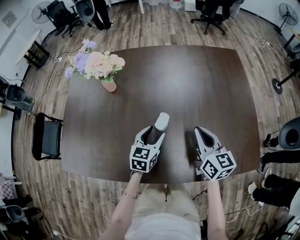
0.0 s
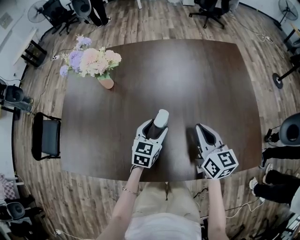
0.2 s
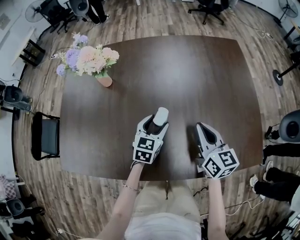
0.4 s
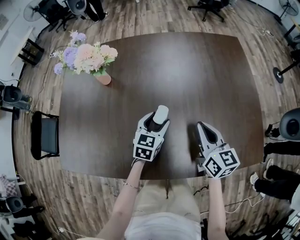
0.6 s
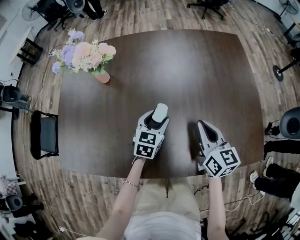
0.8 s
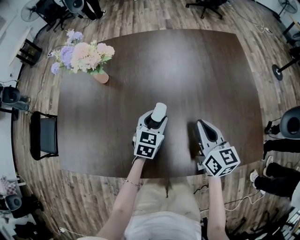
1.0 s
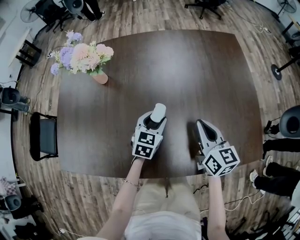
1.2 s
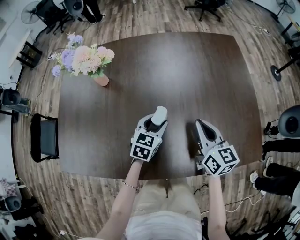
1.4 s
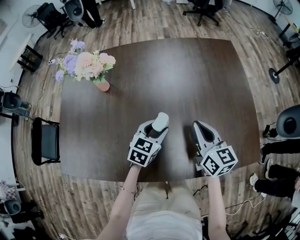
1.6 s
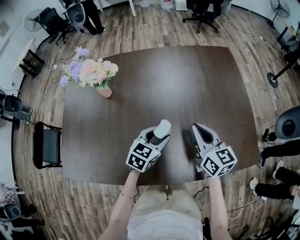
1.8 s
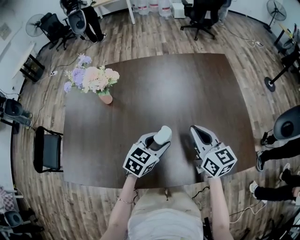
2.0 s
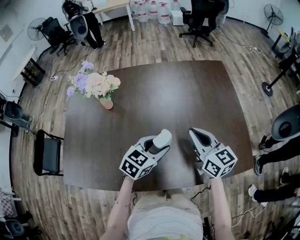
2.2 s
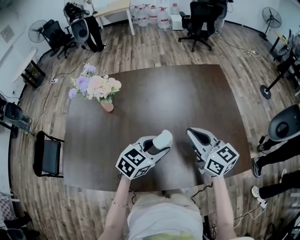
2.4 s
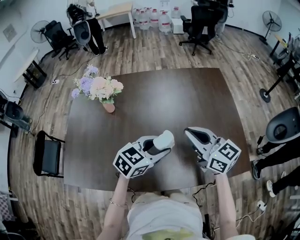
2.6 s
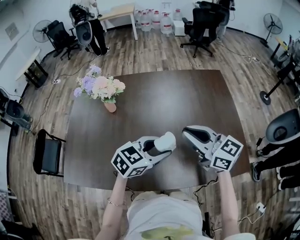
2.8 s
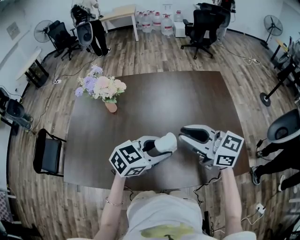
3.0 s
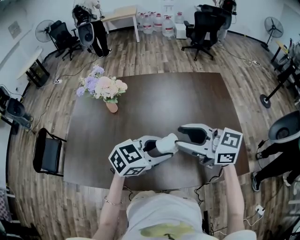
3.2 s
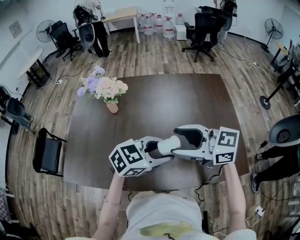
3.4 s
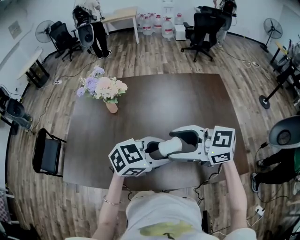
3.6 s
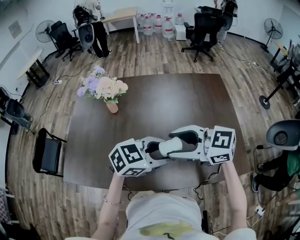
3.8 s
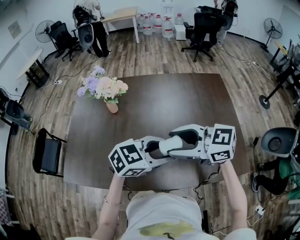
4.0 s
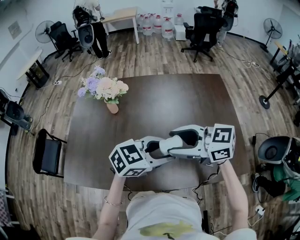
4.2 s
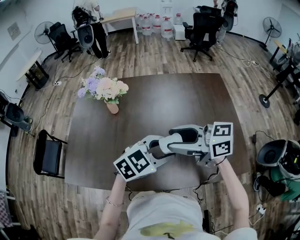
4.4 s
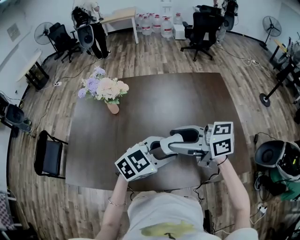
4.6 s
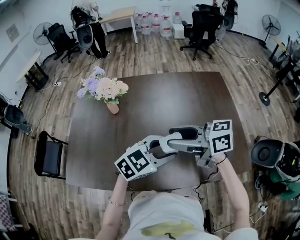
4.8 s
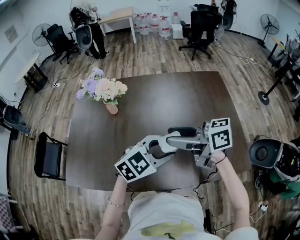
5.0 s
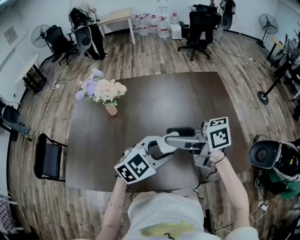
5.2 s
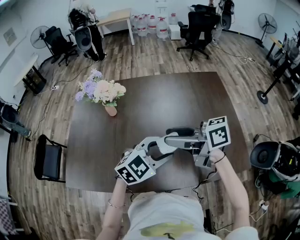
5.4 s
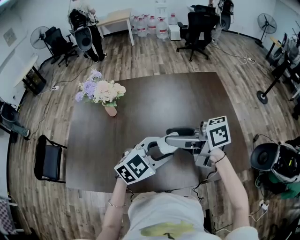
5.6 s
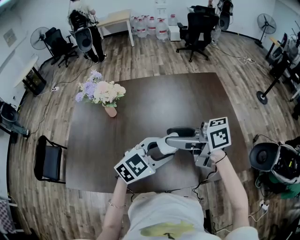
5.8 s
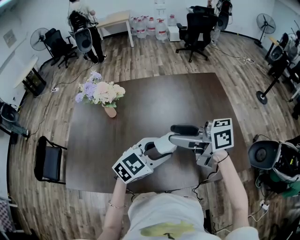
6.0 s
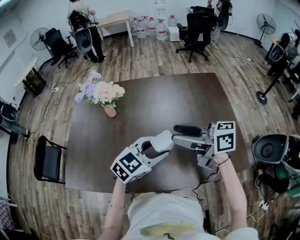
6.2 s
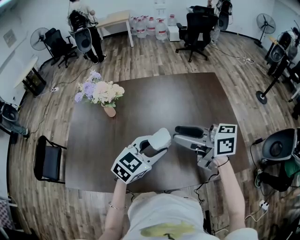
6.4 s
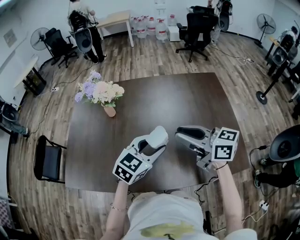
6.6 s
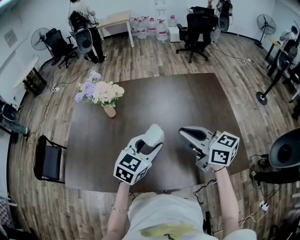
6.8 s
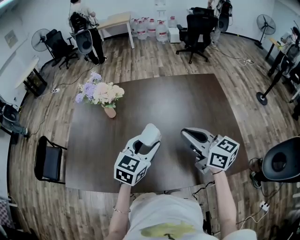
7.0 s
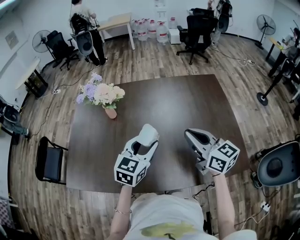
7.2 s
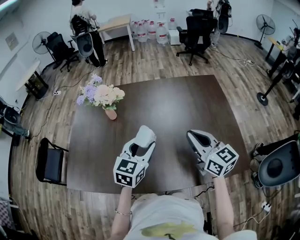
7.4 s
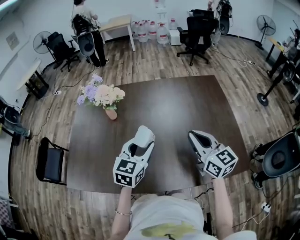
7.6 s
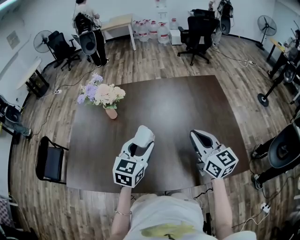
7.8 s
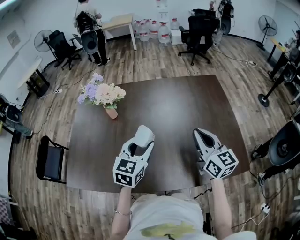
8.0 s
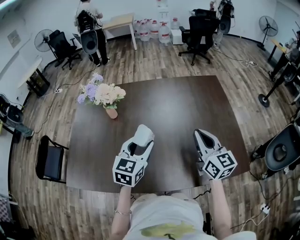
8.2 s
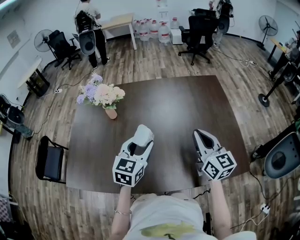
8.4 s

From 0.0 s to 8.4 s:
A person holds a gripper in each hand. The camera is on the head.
From 0.0 s to 1.4 s: There are only small adjustments of the grippers.
From 1.4 s to 2.8 s: The right gripper moves upward, some 15 cm, and rotates about 30 degrees, while the left gripper is displaced upward and backward by approximately 20 cm, and turns by some 30 degrees.
From 2.8 s to 4.2 s: The right gripper ends up about 10 cm from where it was, changes its angle by approximately 30 degrees, and opens its fingers.
From 4.2 s to 5.6 s: The right gripper rotates approximately 30 degrees.
From 5.6 s to 7.0 s: The right gripper moves some 10 cm, changes its angle by roughly 40 degrees, and closes its fingers. The left gripper moves some 5 cm, and changes its angle by some 30 degrees.
From 7.0 s to 8.4 s: The right gripper travels to the right by roughly 5 cm, and swivels about 20 degrees.

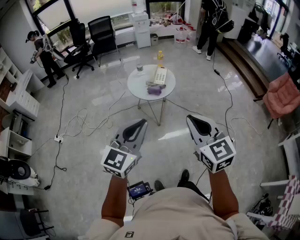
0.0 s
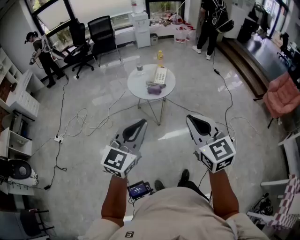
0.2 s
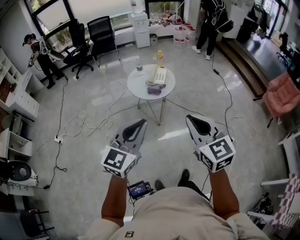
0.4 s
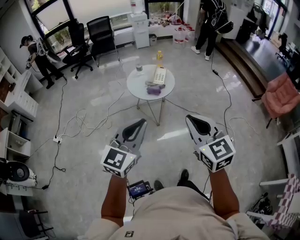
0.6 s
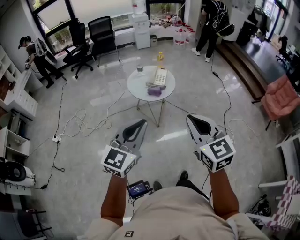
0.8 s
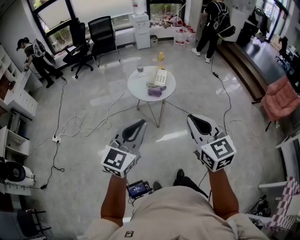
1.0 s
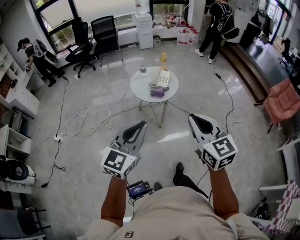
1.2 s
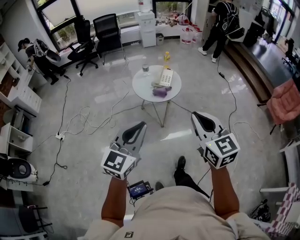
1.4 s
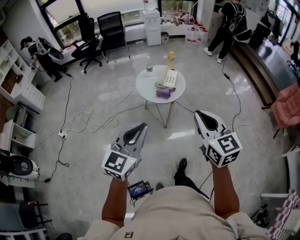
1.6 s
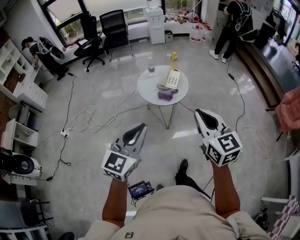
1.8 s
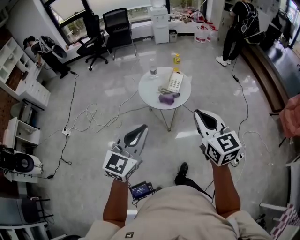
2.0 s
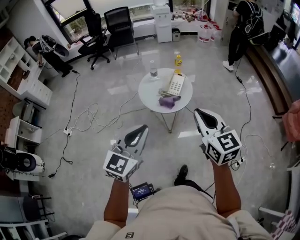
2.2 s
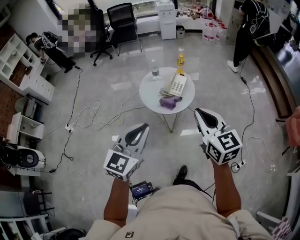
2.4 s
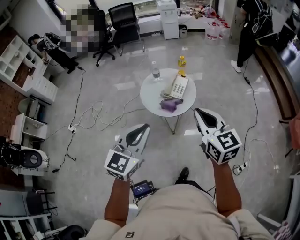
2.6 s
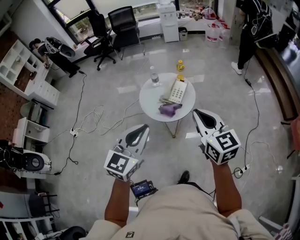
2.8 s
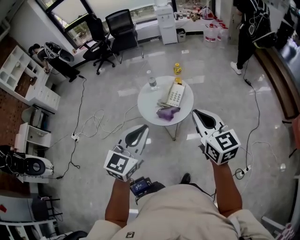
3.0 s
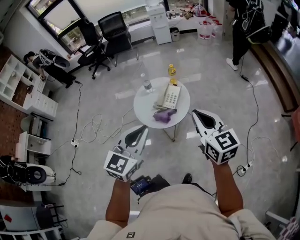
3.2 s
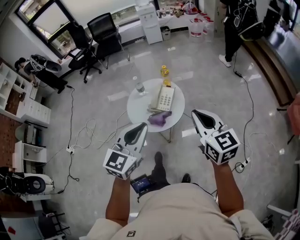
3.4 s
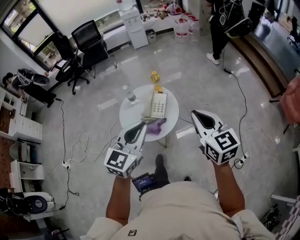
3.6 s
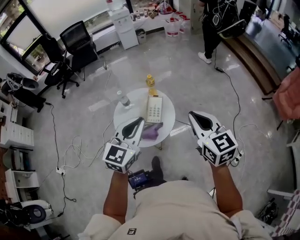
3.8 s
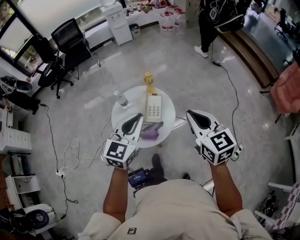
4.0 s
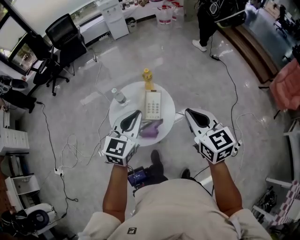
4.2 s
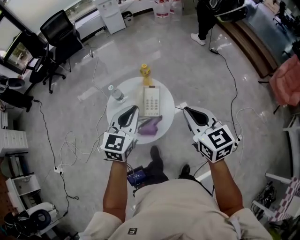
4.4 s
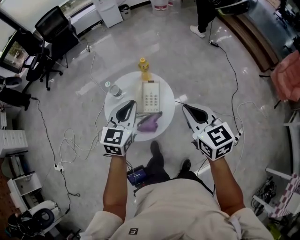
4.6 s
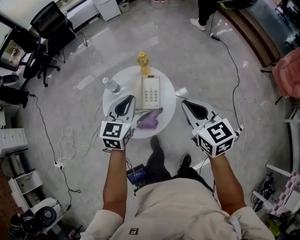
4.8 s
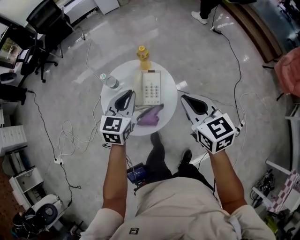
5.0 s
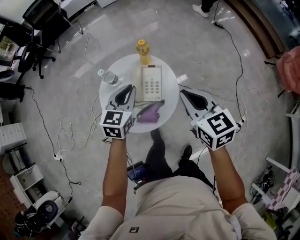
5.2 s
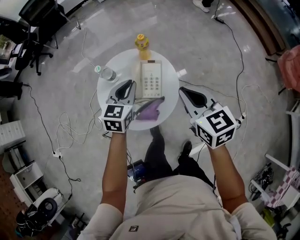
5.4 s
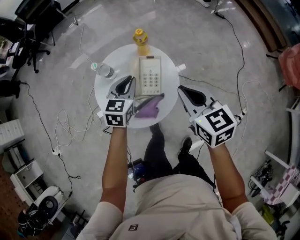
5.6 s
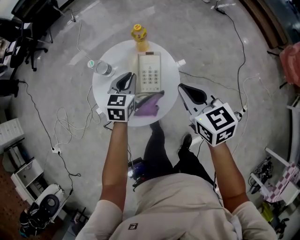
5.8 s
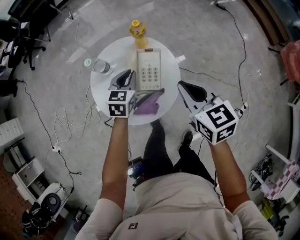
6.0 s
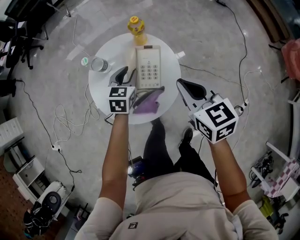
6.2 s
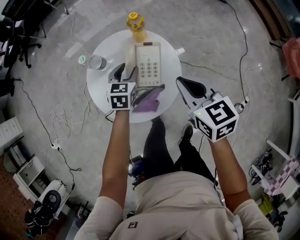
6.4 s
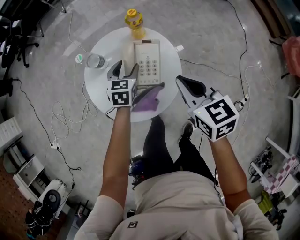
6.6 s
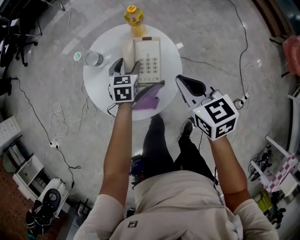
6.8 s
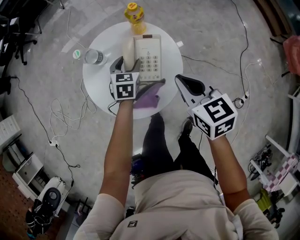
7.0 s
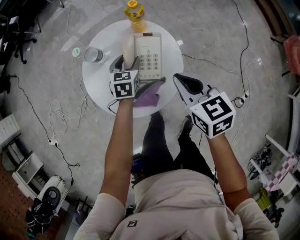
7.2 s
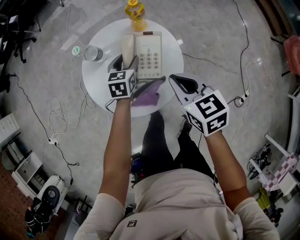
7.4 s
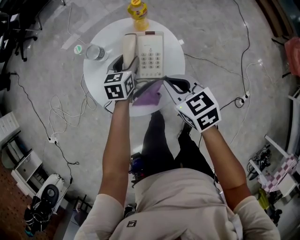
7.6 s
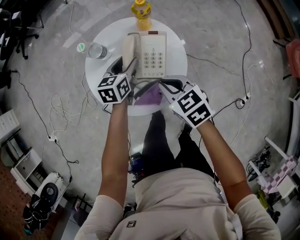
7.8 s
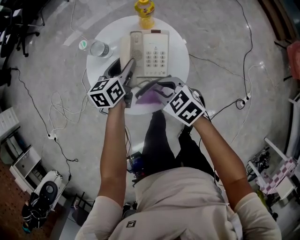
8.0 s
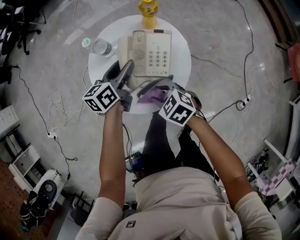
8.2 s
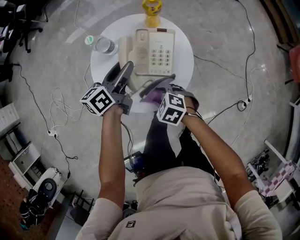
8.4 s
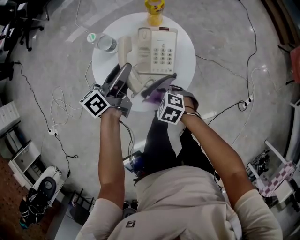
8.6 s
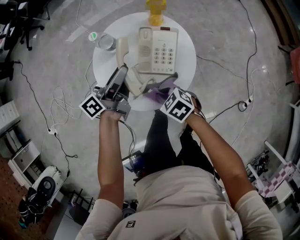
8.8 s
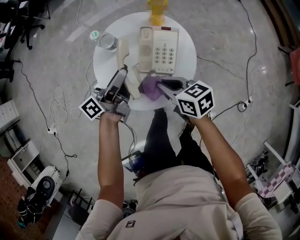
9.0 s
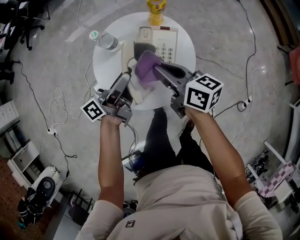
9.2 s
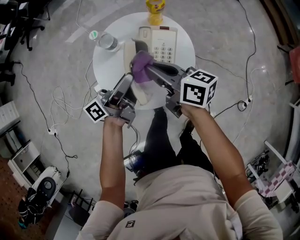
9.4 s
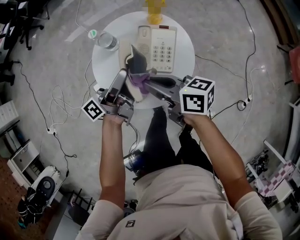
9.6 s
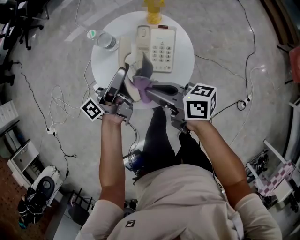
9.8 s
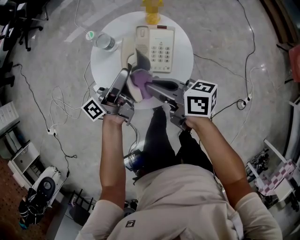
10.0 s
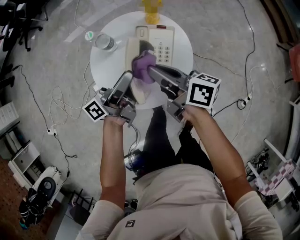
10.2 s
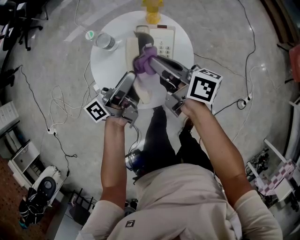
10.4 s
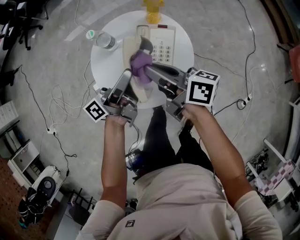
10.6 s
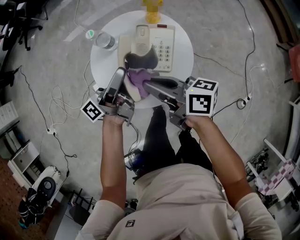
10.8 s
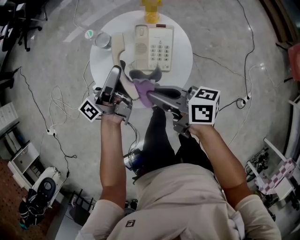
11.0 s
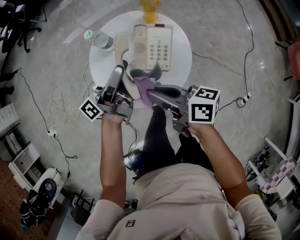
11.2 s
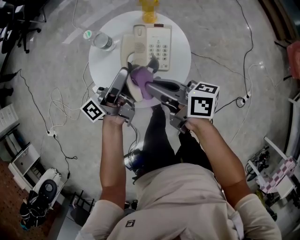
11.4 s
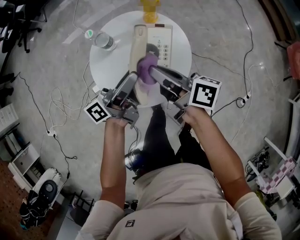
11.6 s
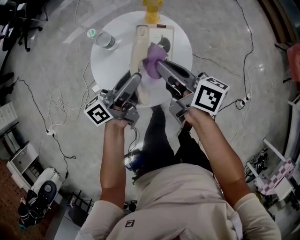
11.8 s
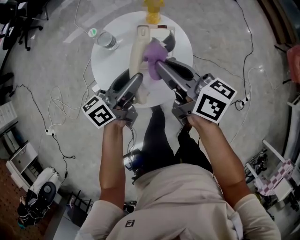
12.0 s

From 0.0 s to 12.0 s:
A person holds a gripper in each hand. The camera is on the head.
From 0.0 s to 1.6 s: The right gripper travels forward by some 10 cm. The left gripper shifts some 5 cm forward.
From 1.6 s to 3.0 s: The left gripper heads forward and to the right, covering about 30 cm, while the right gripper goes some 30 cm forward.
From 3.0 s to 4.4 s: The left gripper moves forward and downward, roughly 35 cm; the right gripper is displaced forward and downward by roughly 20 cm, and swivels approximately 20 degrees.
From 4.4 s to 6.0 s: The right gripper heads downward and forward, covering approximately 20 cm; the left gripper is displaced downward and forward by roughly 30 cm, and swivels approximately 20 degrees.
From 6.0 s to 7.6 s: The right gripper goes roughly 10 cm downward and to the left. The left gripper travels downward by approximately 10 cm, and opens.
From 7.6 s to 9.0 s: The left gripper moves upward and to the left, approximately 15 cm, and angles its fingers upward, by about 50 degrees; the right gripper is displaced to the left by about 5 cm, travels downward and back again, some 15 cm each way, rotates about 20 degrees, and opens, then closes again.
From 9.0 s to 10.4 s: The right gripper is displaced upward and forward by approximately 15 cm, and turns by approximately 40 degrees, while the left gripper changes place by about 5 cm.
From 10.4 s to 12.0 s: The left gripper turns by roughly 30 degrees. The right gripper reaches approximately 10 cm backward, then returns.

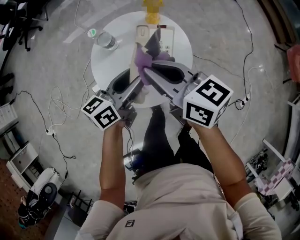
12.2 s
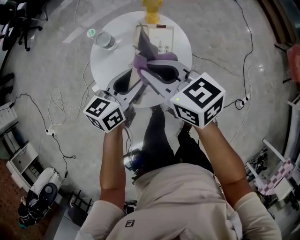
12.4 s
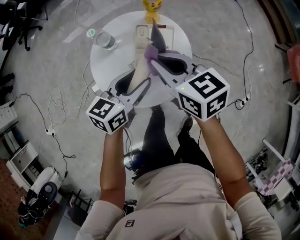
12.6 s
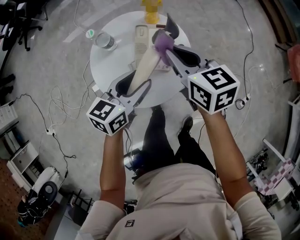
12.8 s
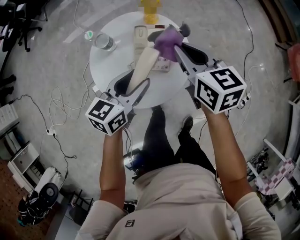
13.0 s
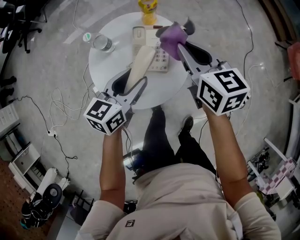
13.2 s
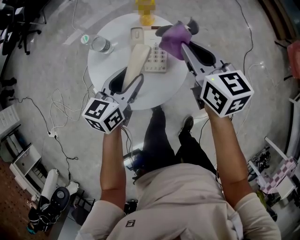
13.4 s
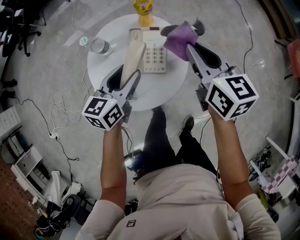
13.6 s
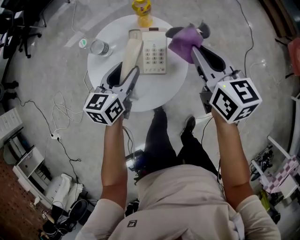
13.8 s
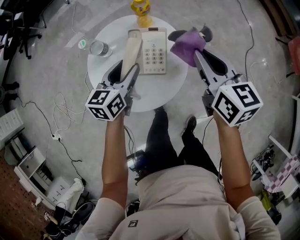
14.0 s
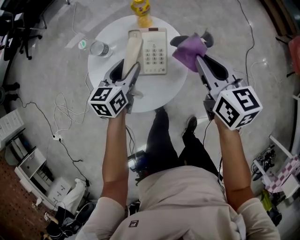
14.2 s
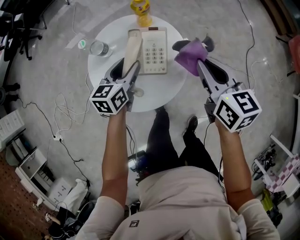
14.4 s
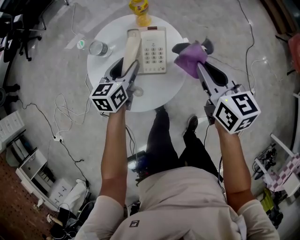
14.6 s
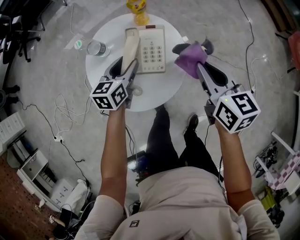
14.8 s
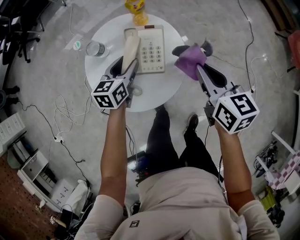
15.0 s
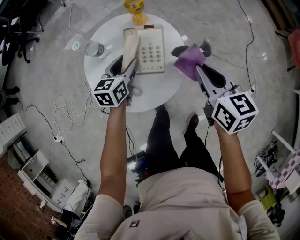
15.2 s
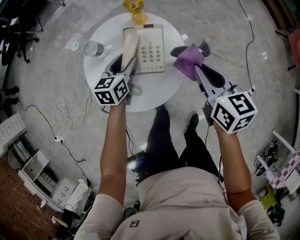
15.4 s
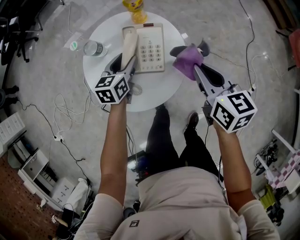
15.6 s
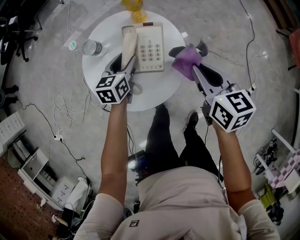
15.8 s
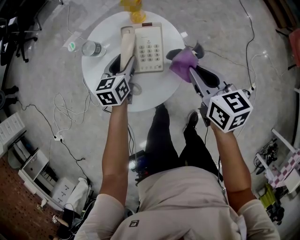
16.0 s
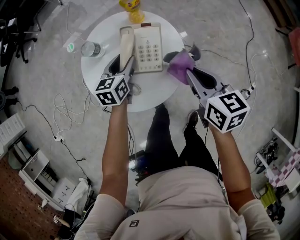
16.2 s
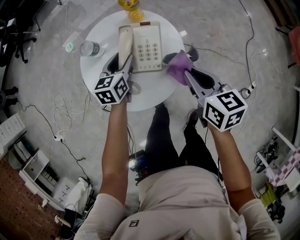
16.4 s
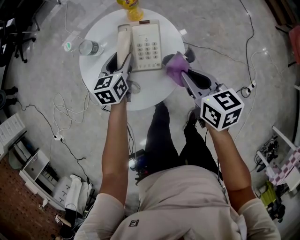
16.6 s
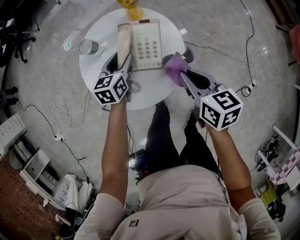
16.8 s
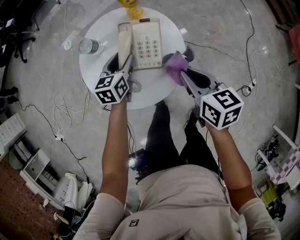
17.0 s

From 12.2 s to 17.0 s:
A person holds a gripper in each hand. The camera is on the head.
From 12.2 s to 13.8 s: The right gripper is displaced to the right by approximately 15 cm, and swivels approximately 30 degrees; the left gripper changes place by approximately 5 cm, and turns by about 20 degrees.
From 13.8 s to 15.4 s: The right gripper shifts approximately 10 cm downward and backward; the left gripper travels downward by some 10 cm.
From 15.4 s to 17.0 s: The right gripper heads downward, covering approximately 5 cm.
